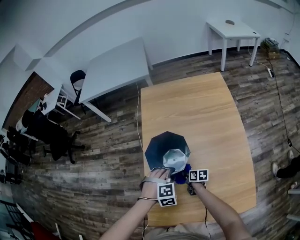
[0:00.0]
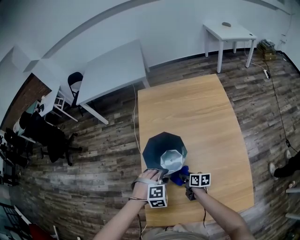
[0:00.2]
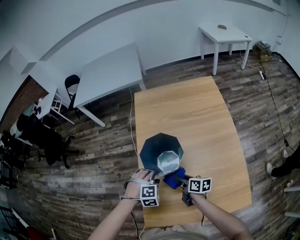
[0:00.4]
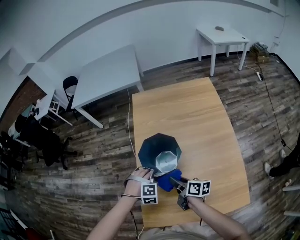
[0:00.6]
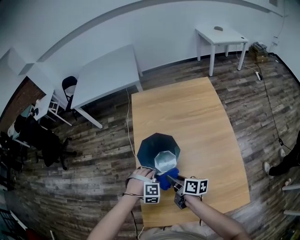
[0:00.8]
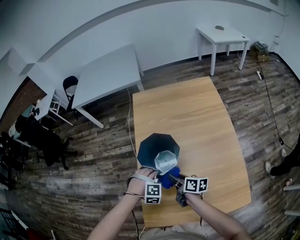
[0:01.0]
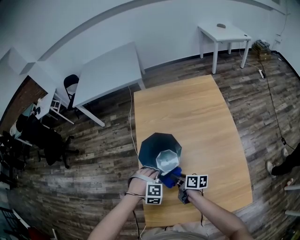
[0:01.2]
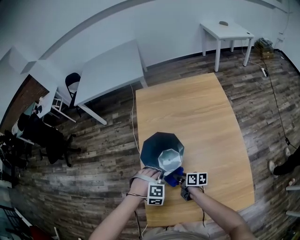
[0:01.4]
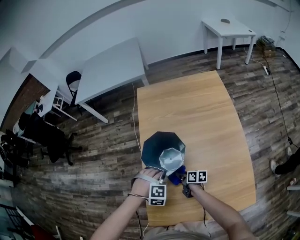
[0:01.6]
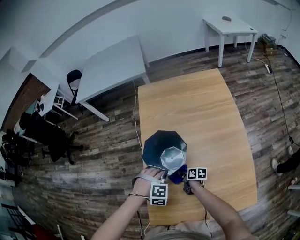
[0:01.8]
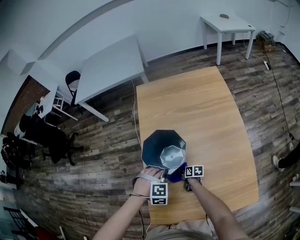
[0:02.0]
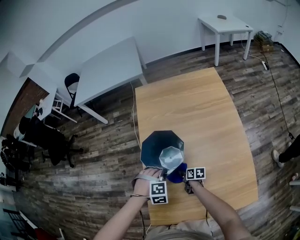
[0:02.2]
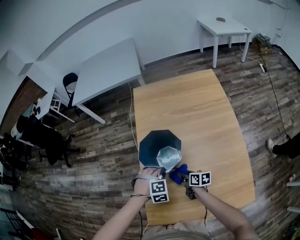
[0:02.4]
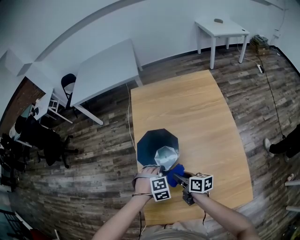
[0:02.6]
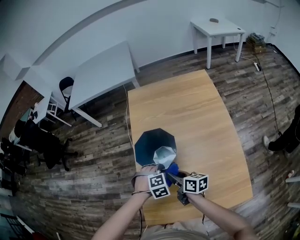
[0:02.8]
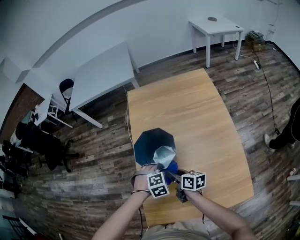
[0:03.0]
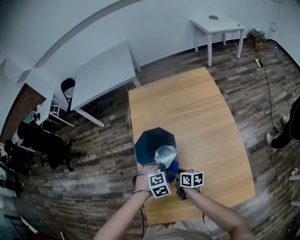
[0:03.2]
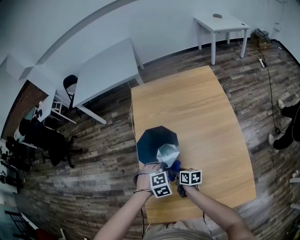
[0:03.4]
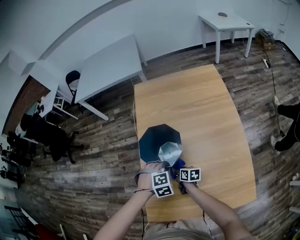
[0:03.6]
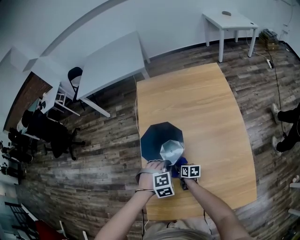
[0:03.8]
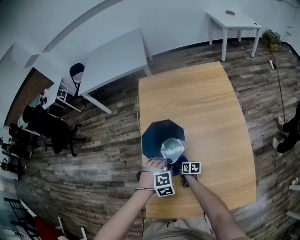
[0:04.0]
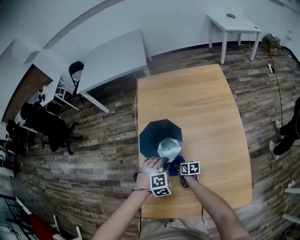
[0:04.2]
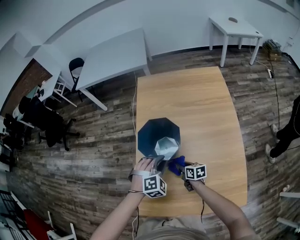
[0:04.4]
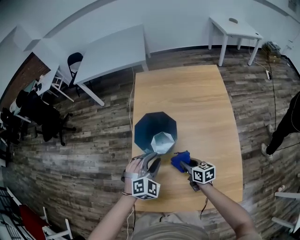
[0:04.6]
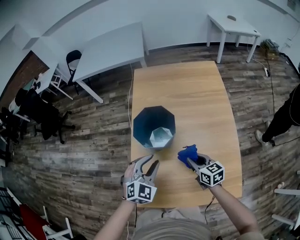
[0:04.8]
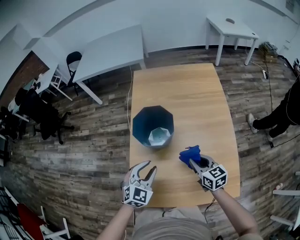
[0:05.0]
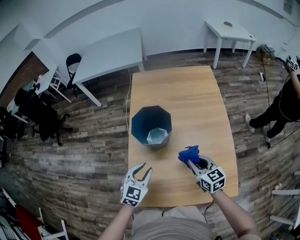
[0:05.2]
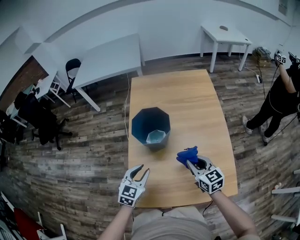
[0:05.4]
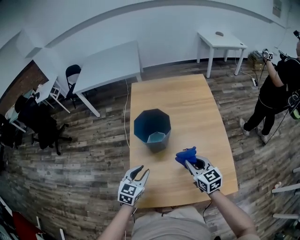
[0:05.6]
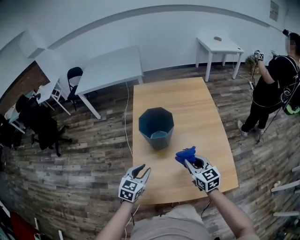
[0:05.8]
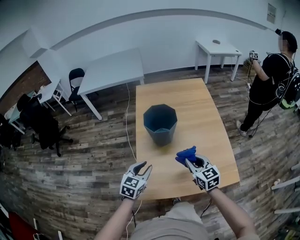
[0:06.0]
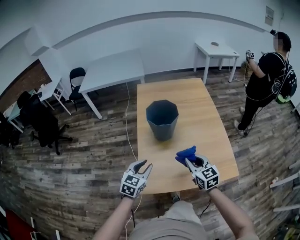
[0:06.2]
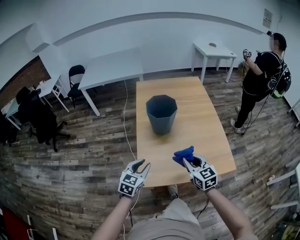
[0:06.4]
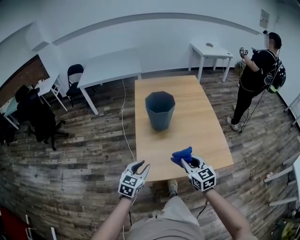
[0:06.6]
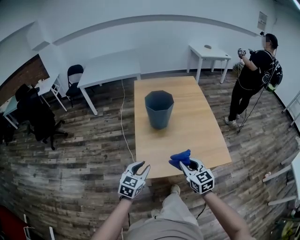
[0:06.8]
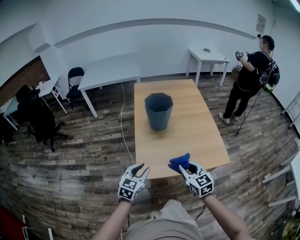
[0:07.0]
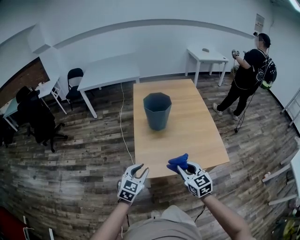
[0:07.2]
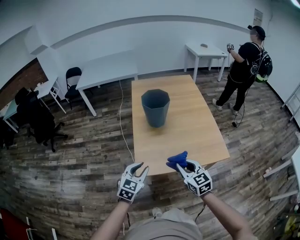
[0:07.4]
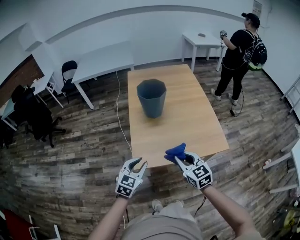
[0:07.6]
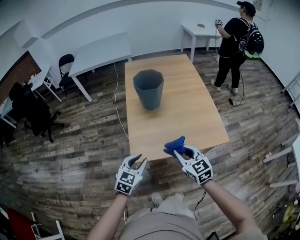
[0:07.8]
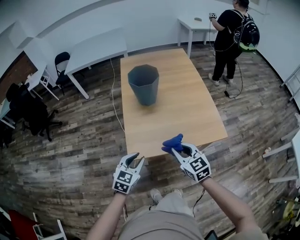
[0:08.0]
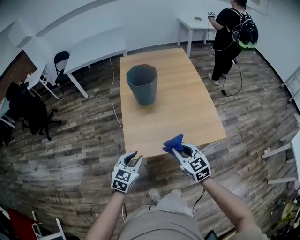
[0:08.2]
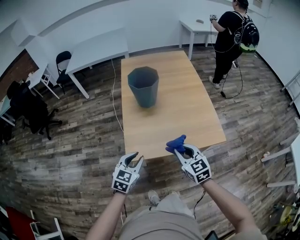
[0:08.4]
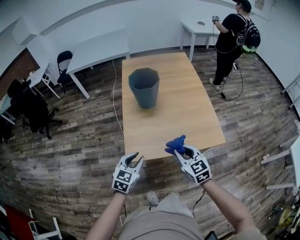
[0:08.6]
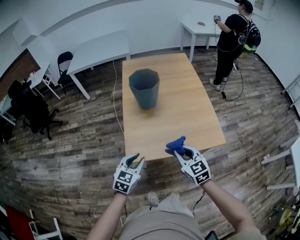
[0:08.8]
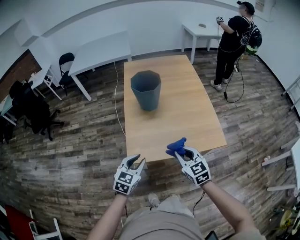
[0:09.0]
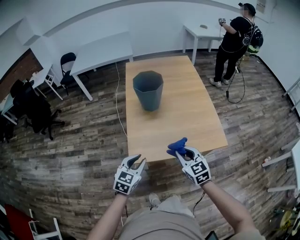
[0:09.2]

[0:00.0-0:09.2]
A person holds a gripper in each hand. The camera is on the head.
0:00.0 to 0:01.6: The right gripper reaches about 25 cm upward, then returns.
0:01.6 to 0:03.0: The right gripper goes some 15 cm upward; the left gripper swivels about 20 degrees.
0:03.0 to 0:04.6: The left gripper moves upward, about 10 cm, and tilts its fingers roughly 30 degrees upward. Meanwhile the right gripper travels to the right by some 5 cm, travels downward and back again, roughly 20 cm each way, and swivels roughly 20 degrees.
0:04.6 to 0:06.2: The left gripper shifts approximately 30 cm backward and to the left, and twists approximately 40 degrees counterclockwise, seen from behind. Meanwhile the right gripper goes about 30 cm backward and upward, and turns by roughly 40 degrees.
0:06.2 to 0:07.6: The two grippers go some 20 cm backward.
0:07.6 to 0:09.2: The right gripper moves roughly 5 cm.

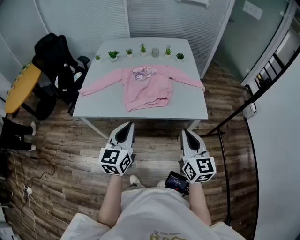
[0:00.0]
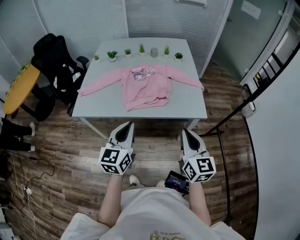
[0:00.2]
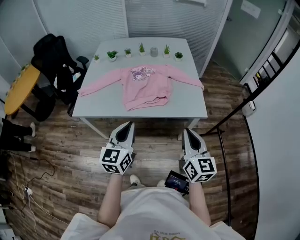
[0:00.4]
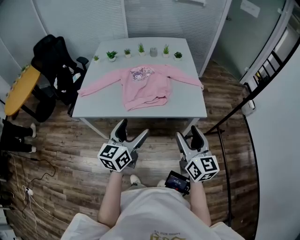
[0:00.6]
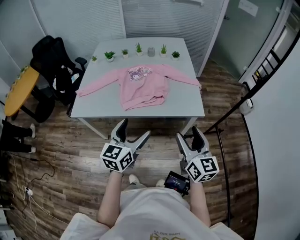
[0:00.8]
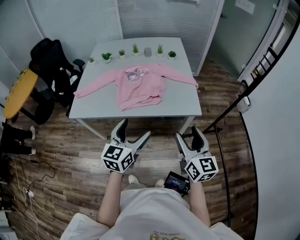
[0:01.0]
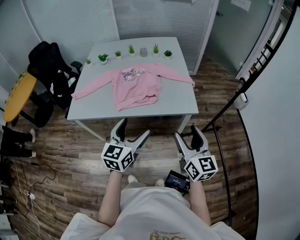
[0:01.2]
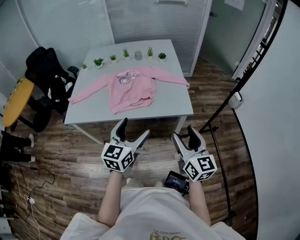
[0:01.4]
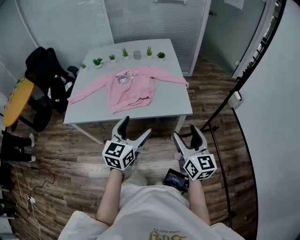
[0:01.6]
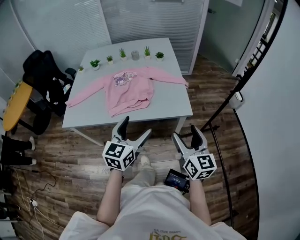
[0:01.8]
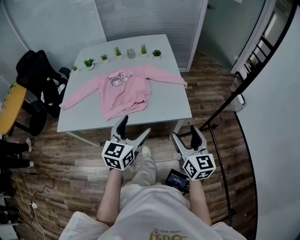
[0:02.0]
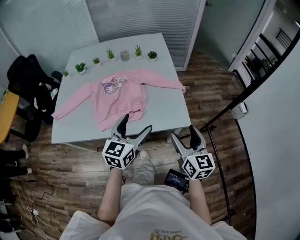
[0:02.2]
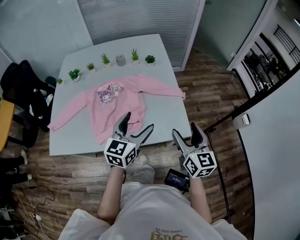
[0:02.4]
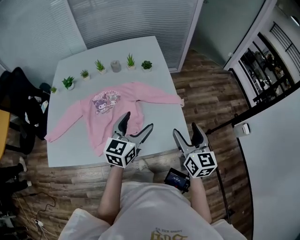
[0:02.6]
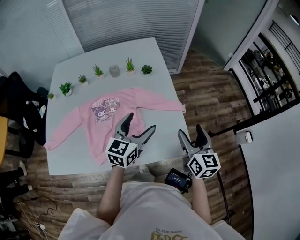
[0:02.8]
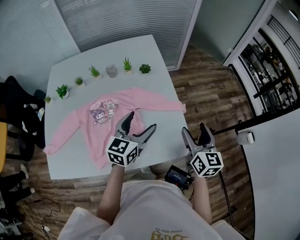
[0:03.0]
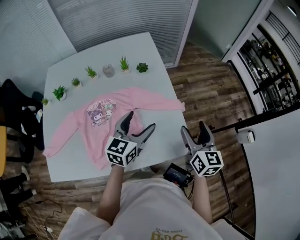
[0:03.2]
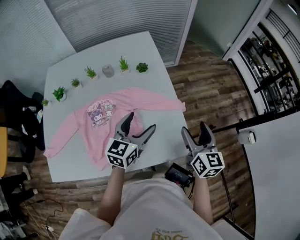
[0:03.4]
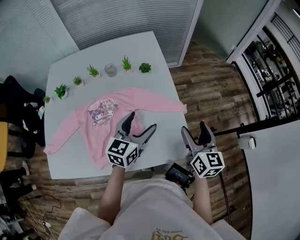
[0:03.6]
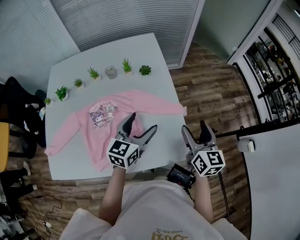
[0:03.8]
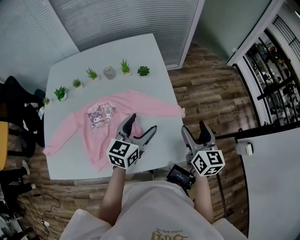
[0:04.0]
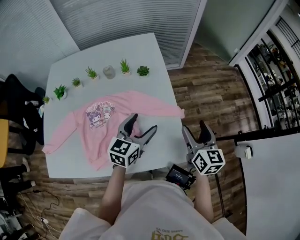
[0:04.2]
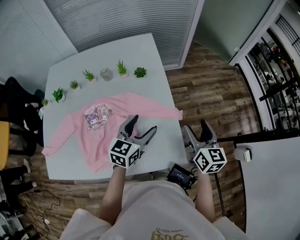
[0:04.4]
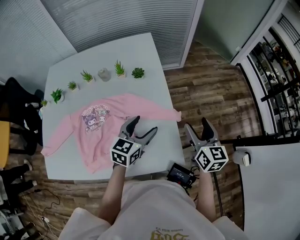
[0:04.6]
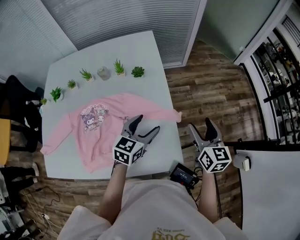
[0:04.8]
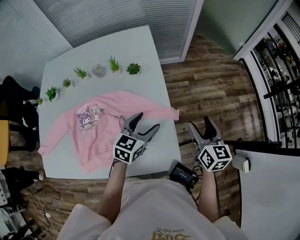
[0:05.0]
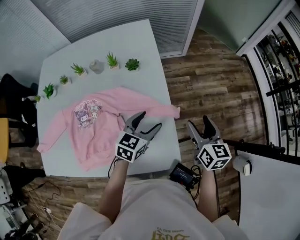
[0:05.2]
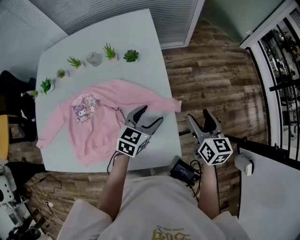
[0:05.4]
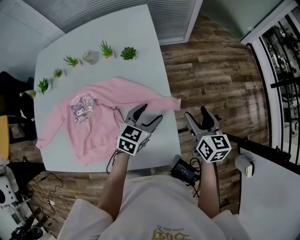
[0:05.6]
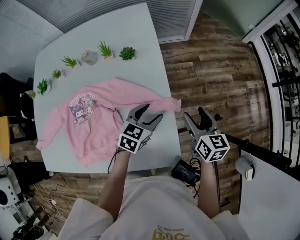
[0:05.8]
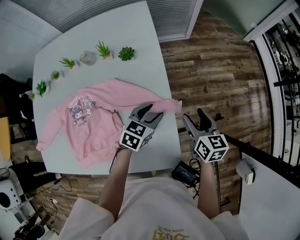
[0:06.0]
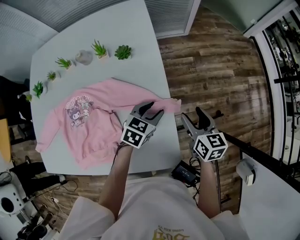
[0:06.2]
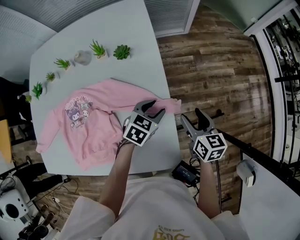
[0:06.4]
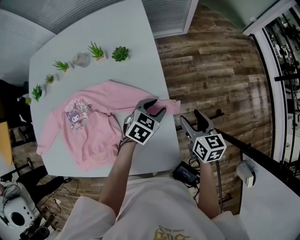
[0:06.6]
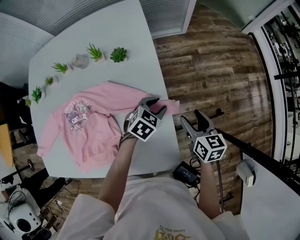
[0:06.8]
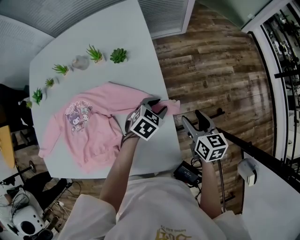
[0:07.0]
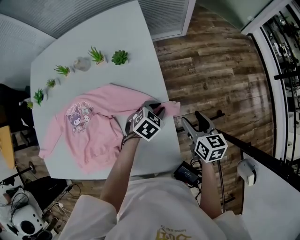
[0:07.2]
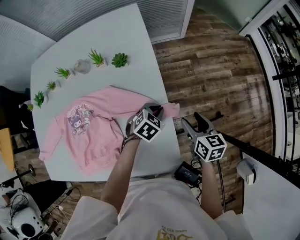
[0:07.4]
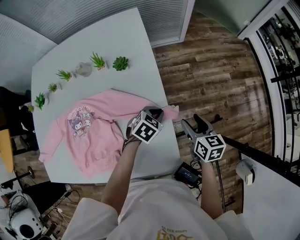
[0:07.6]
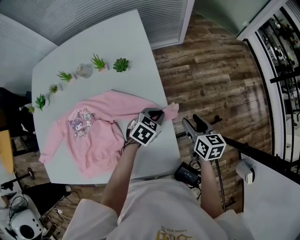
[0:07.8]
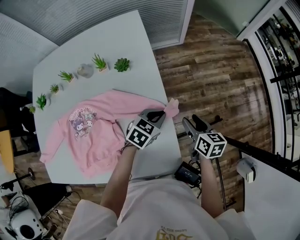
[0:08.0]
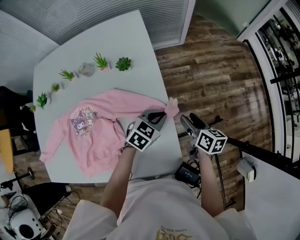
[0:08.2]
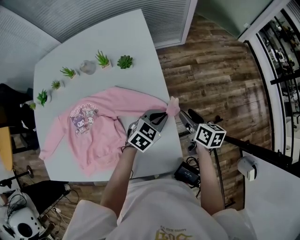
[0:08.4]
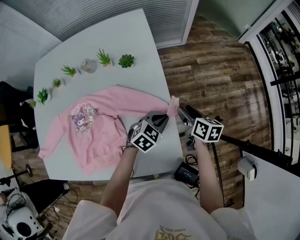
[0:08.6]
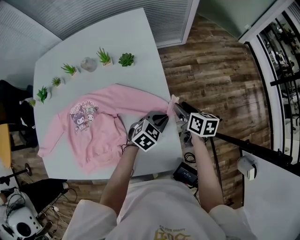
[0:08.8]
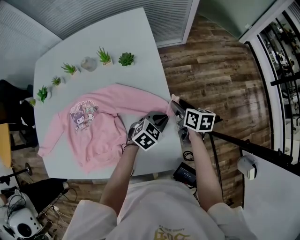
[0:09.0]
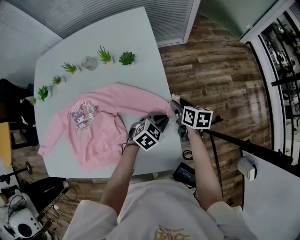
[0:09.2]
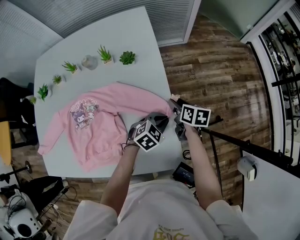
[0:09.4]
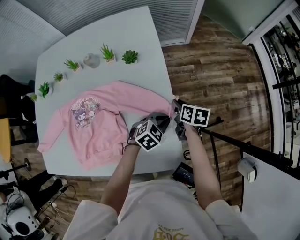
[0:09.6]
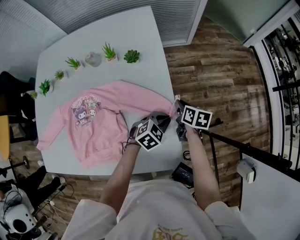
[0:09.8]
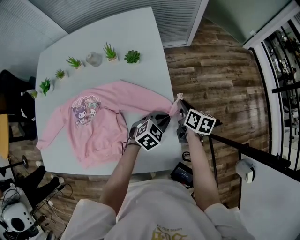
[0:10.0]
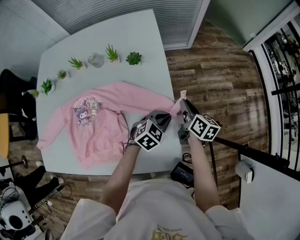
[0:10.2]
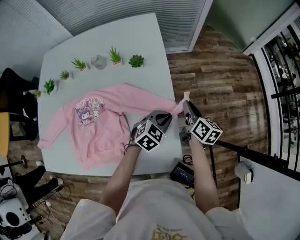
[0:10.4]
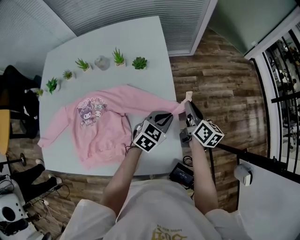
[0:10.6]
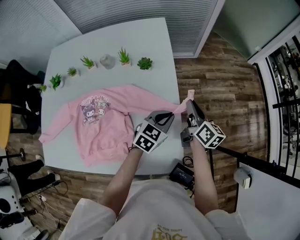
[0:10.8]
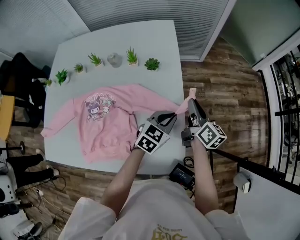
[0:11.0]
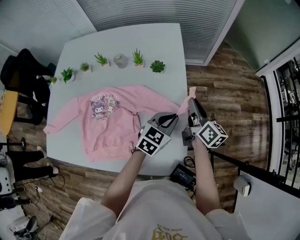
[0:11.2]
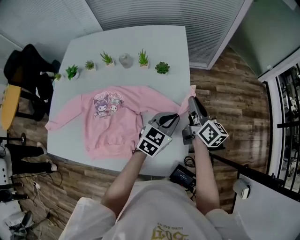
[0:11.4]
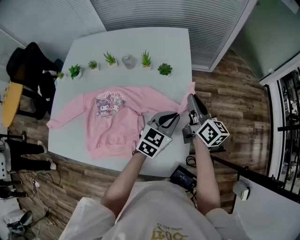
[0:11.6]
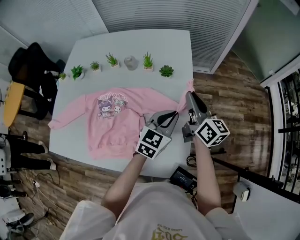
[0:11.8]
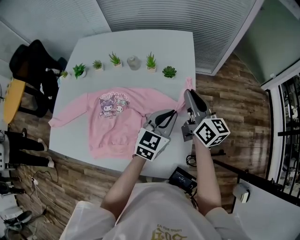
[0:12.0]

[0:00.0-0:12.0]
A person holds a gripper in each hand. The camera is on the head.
0:00.0 to 0:01.6: The two grippers go some 10 cm to the right. The left gripper opens. Meanwhile the right gripper opens its fingers.
0:01.6 to 0:03.0: Both grippers travel together forward, about 40 cm.
0:03.0 to 0:04.4: The grippers both shift forward by about 10 cm.
0:04.4 to 0:06.0: The right gripper goes approximately 15 cm downward and forward. The left gripper moves downward, forward and to the right, roughly 20 cm, and turns by some 20 degrees.
0:06.0 to 0:07.6: The left gripper ends up approximately 5 cm from where it was, and closes.
0:07.6 to 0:09.0: The right gripper moves to the left, about 5 cm. The left gripper changes place by approximately 5 cm.
0:09.0 to 0:10.4: The right gripper moves upward, some 5 cm, and closes.
0:10.4 to 0:12.0: Both grippers move upward and to the left, about 20 cm. The right gripper turns by about 30 degrees. Meanwhile the left gripper rotates approximately 40 degrees.

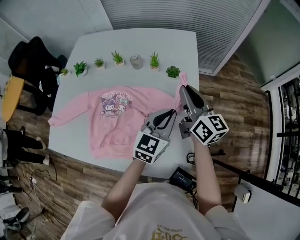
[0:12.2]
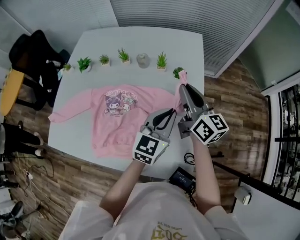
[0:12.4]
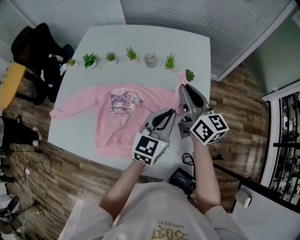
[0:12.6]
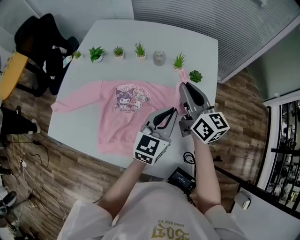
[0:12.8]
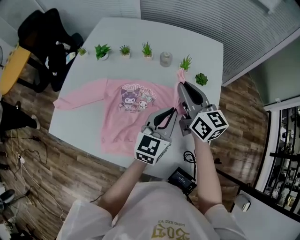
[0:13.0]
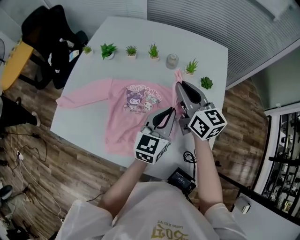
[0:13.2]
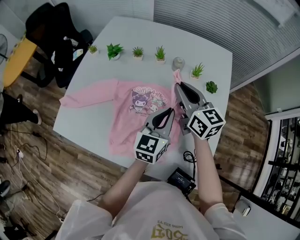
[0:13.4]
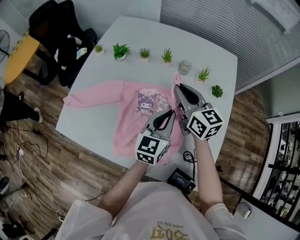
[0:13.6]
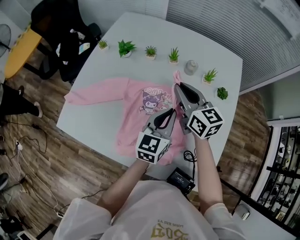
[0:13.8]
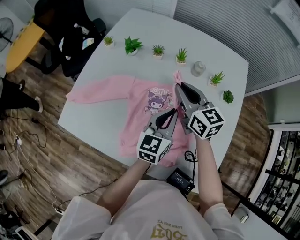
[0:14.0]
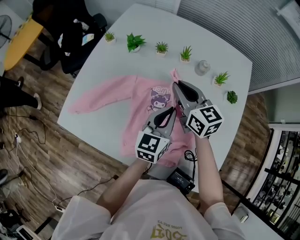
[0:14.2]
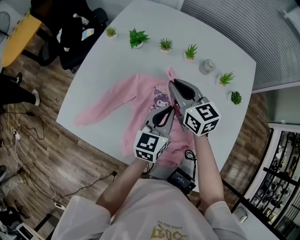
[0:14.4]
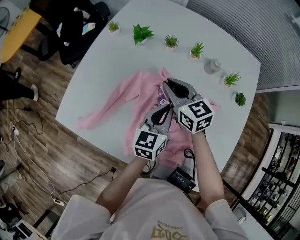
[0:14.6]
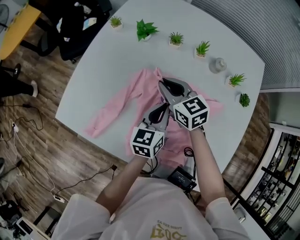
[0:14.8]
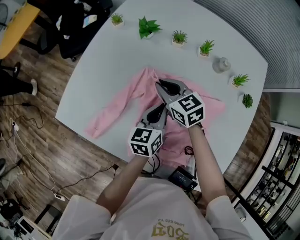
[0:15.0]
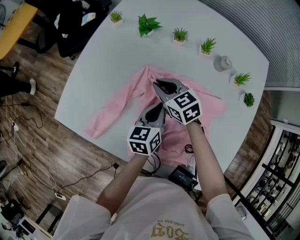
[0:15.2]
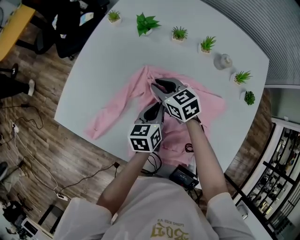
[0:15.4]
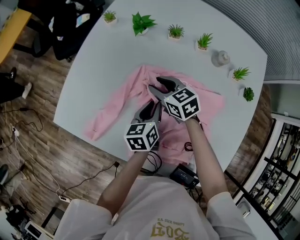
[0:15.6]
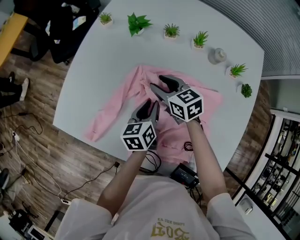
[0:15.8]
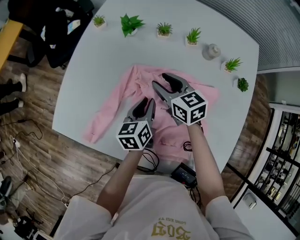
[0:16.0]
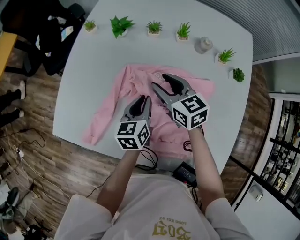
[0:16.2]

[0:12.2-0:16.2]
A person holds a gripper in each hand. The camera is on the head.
0:12.2 to 0:13.6: Both grippers travel together to the left, some 25 cm. The left gripper swivels roughly 20 degrees; the right gripper swivels roughly 20 degrees.
0:13.6 to 0:14.8: The right gripper goes approximately 25 cm to the left and downward, and changes its angle by about 30 degrees. Meanwhile the left gripper travels to the left, downward and forward by about 20 cm.
0:14.8 to 0:16.2: The right gripper goes downward and returns, approximately 10 cm each way, and opens its fingers. Meanwhile the left gripper ends up approximately 5 cm from where it was.
